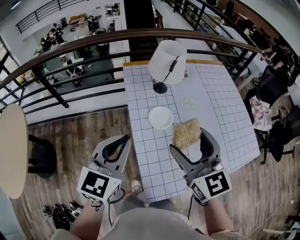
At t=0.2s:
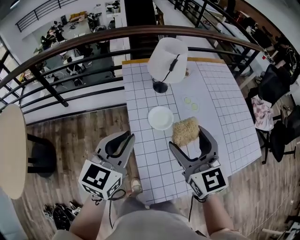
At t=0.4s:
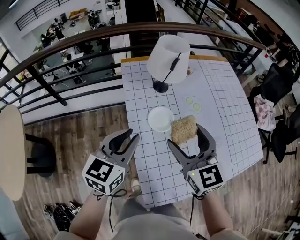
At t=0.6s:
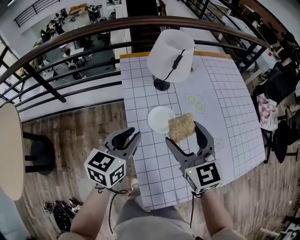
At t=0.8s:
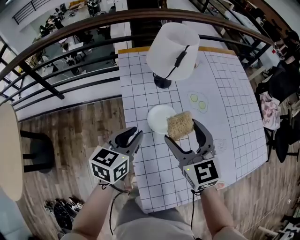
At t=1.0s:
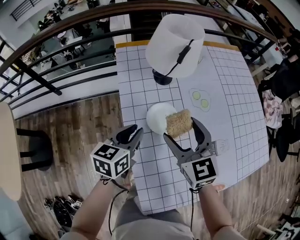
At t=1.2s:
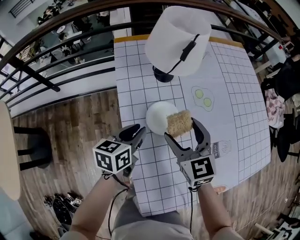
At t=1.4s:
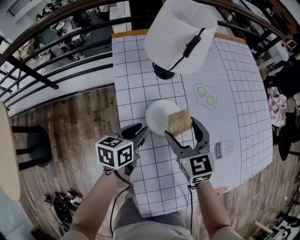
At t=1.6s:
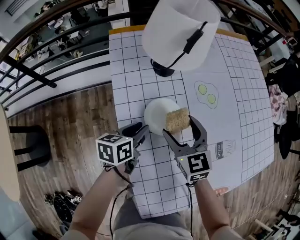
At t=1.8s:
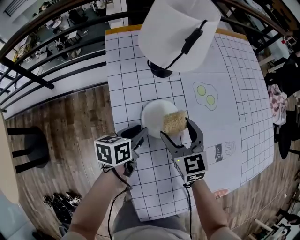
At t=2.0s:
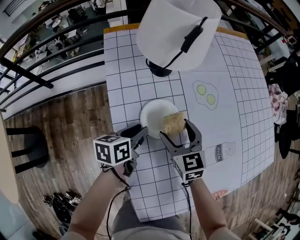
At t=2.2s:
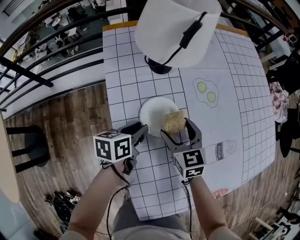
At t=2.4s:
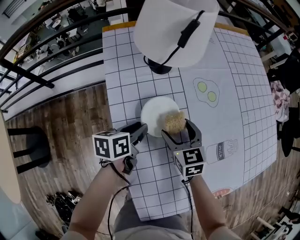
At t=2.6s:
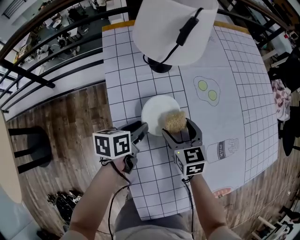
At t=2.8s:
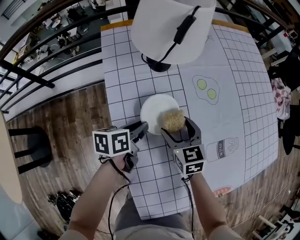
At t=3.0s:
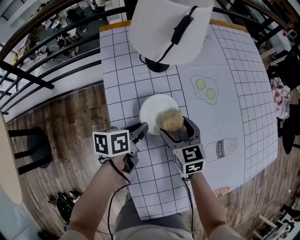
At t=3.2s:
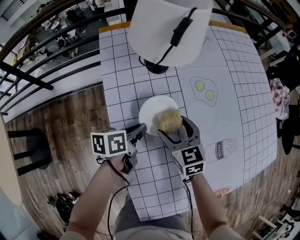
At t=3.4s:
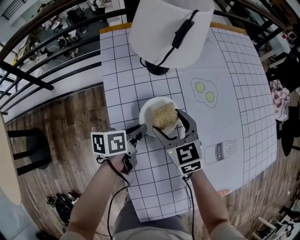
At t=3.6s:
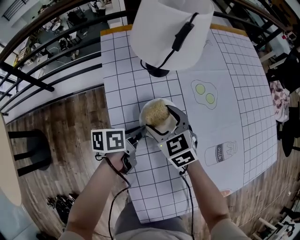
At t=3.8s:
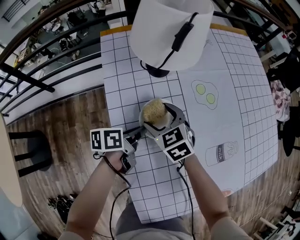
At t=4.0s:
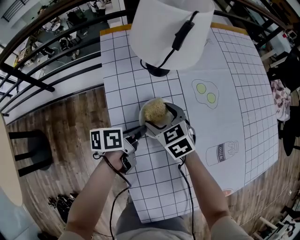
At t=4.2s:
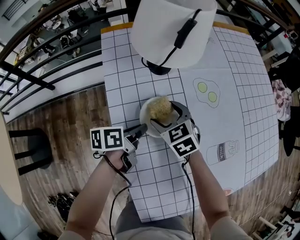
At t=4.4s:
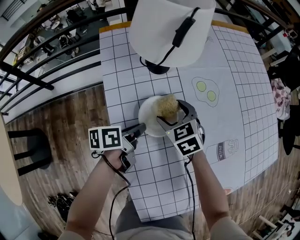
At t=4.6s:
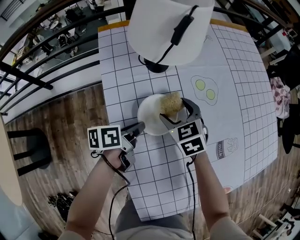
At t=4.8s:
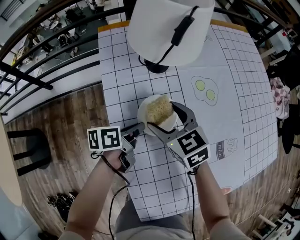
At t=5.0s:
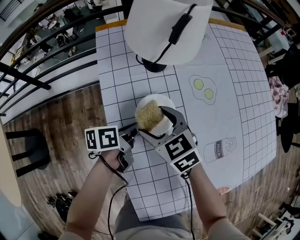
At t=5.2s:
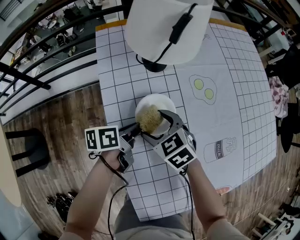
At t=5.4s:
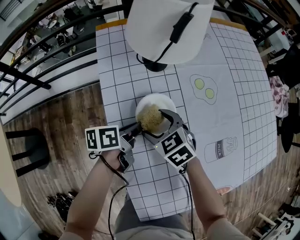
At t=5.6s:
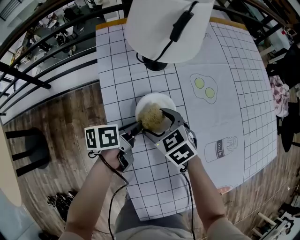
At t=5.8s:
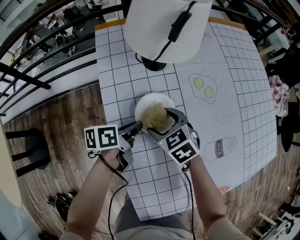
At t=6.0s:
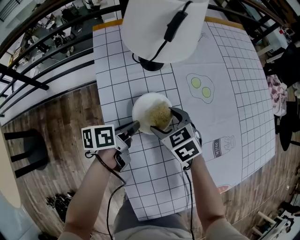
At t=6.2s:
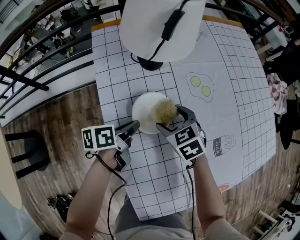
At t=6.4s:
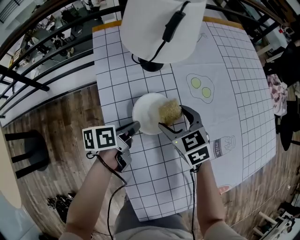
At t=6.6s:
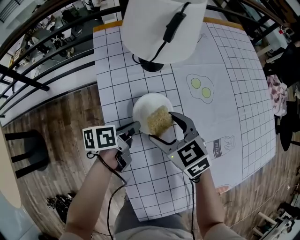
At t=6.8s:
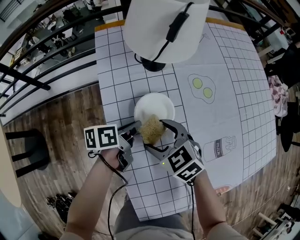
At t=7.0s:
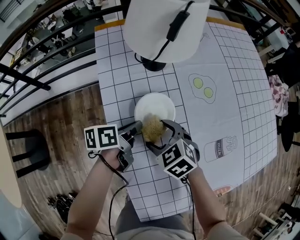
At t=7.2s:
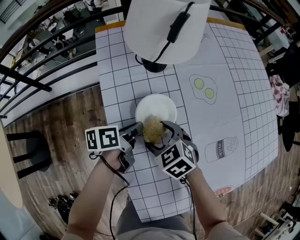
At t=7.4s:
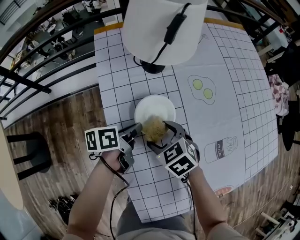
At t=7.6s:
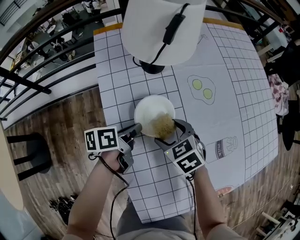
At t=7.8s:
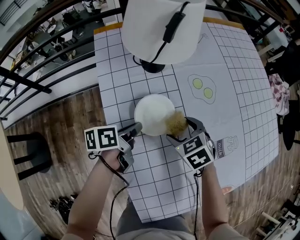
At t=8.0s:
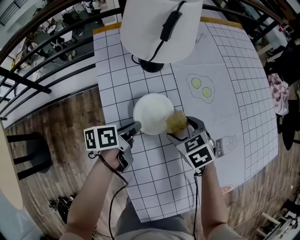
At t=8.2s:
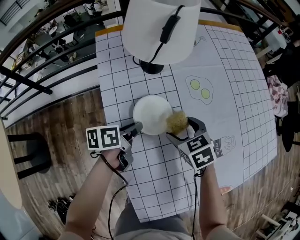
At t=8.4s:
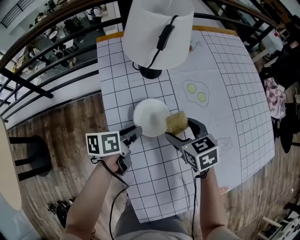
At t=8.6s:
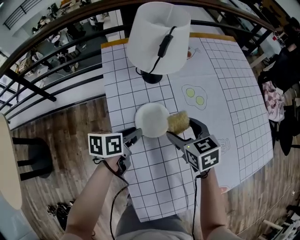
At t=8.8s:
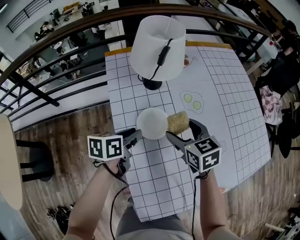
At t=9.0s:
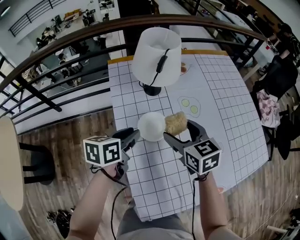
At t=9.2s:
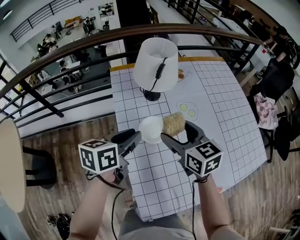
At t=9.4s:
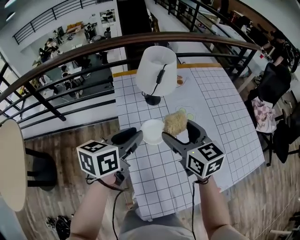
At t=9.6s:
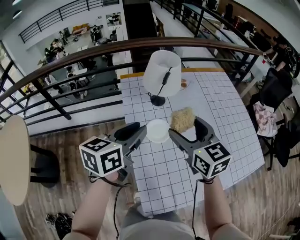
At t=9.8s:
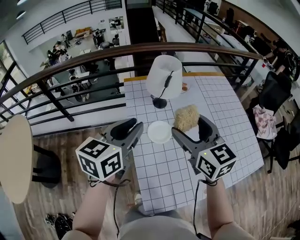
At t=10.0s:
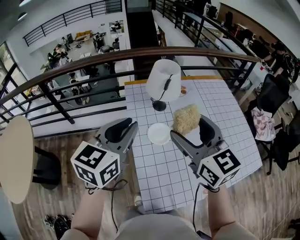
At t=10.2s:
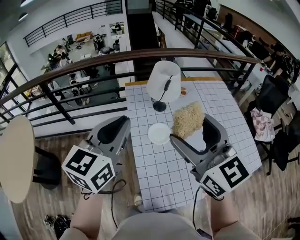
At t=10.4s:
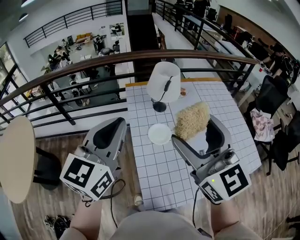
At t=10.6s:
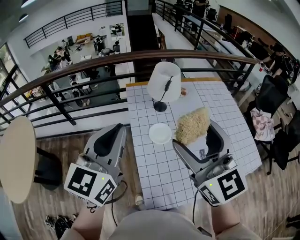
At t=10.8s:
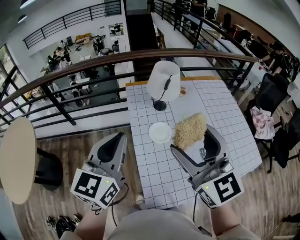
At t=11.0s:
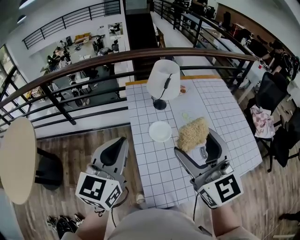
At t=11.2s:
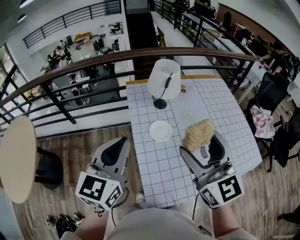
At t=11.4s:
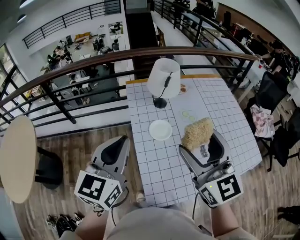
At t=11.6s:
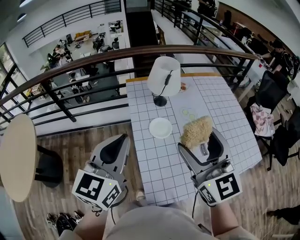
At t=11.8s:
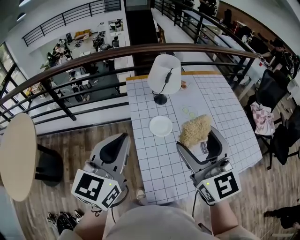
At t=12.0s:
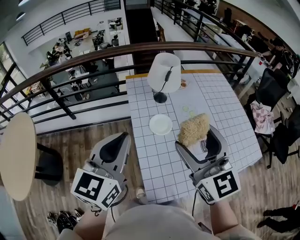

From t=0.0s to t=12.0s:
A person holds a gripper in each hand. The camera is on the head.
From t=0.0s to t=1.6s: The two grippers go some 35 cm downward and forward. The left gripper twists about 40 degrees counterclockwise, seen from behind, and opens.
From t=1.6s to t=3.0s: The right gripper is displaced downward by approximately 10 cm.
From t=3.0s to t=4.4s: The right gripper shifts some 5 cm forward.
From t=7.6s to t=9.0s: The grippers both shift upward by approximately 20 cm. The left gripper rotates some 30 degrees, and opens, while the right gripper swivels about 30 degrees.
From t=9.0s to t=10.4s: Both grippers travel together upward and backward, some 40 cm. The left gripper turns by some 50 degrees, and closes up. Meanwhile the right gripper tilts its fingers about 30 degrees upward.
From t=10.4s to t=12.0s: The left gripper shifts some 5 cm backward. Meanwhile the right gripper travels downward by roughly 5 cm.

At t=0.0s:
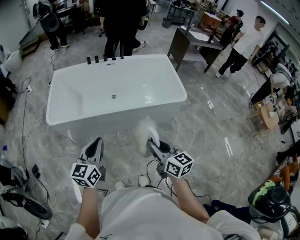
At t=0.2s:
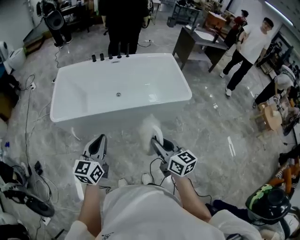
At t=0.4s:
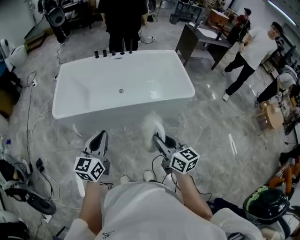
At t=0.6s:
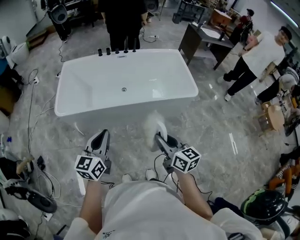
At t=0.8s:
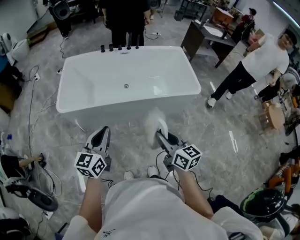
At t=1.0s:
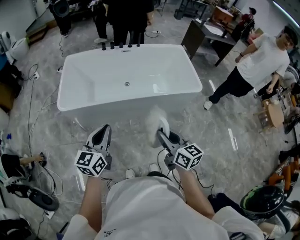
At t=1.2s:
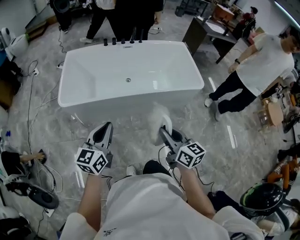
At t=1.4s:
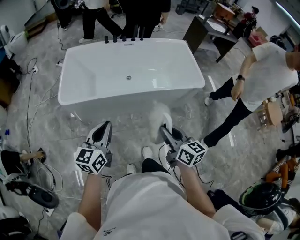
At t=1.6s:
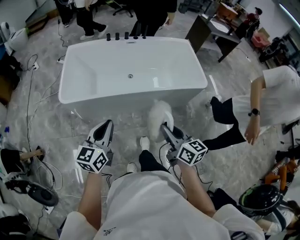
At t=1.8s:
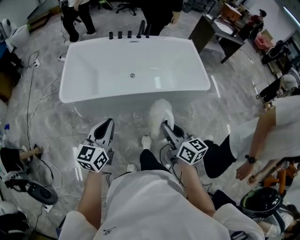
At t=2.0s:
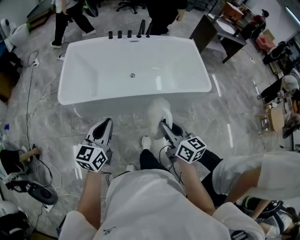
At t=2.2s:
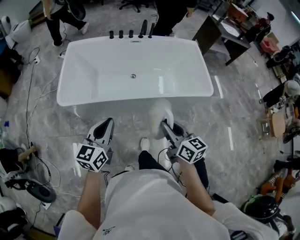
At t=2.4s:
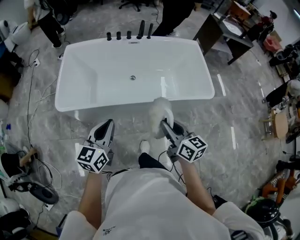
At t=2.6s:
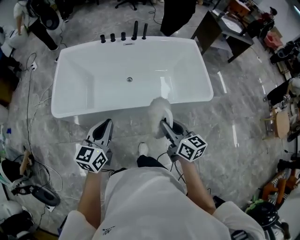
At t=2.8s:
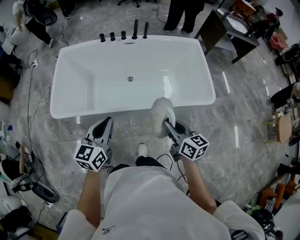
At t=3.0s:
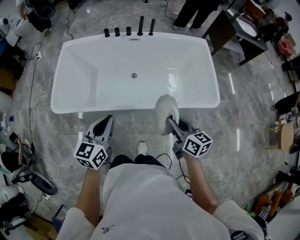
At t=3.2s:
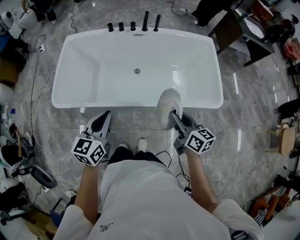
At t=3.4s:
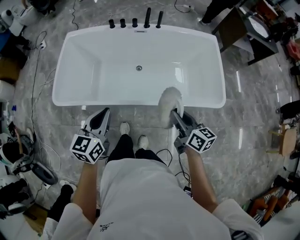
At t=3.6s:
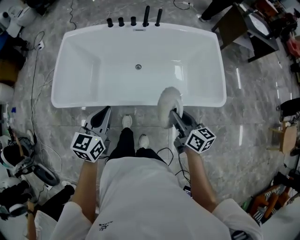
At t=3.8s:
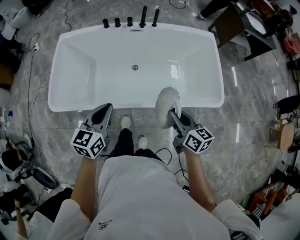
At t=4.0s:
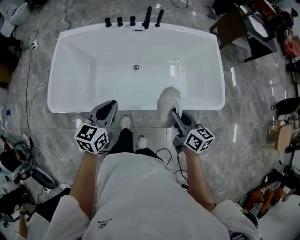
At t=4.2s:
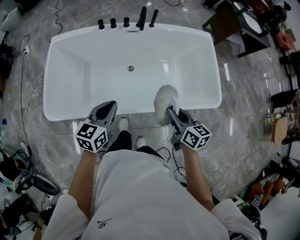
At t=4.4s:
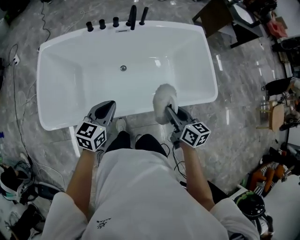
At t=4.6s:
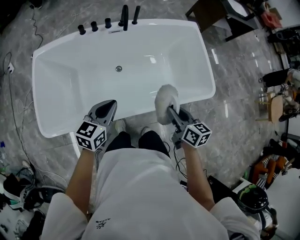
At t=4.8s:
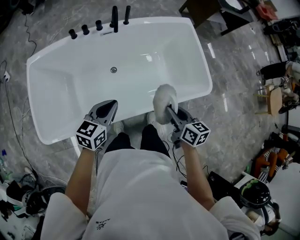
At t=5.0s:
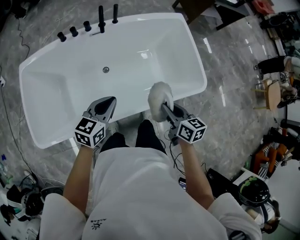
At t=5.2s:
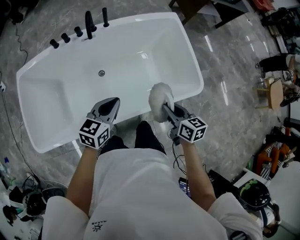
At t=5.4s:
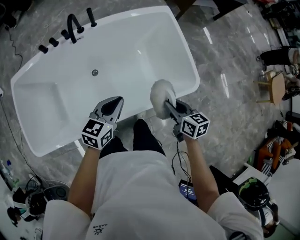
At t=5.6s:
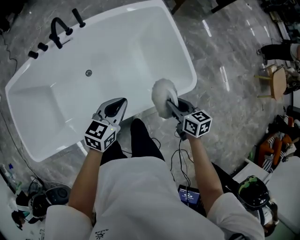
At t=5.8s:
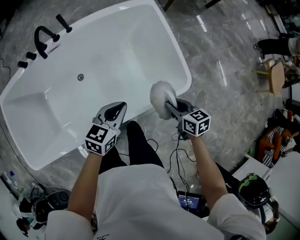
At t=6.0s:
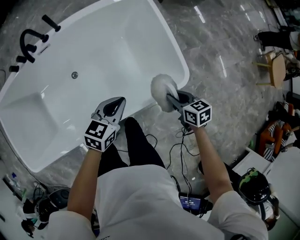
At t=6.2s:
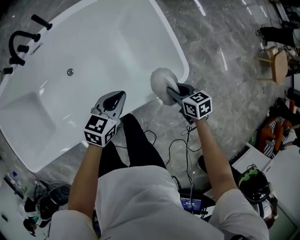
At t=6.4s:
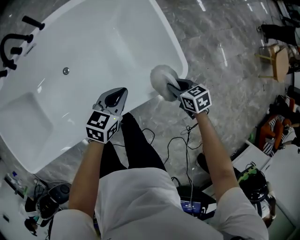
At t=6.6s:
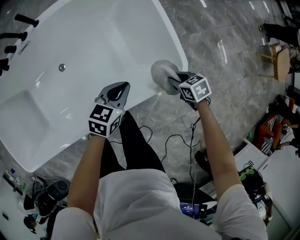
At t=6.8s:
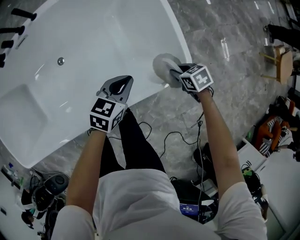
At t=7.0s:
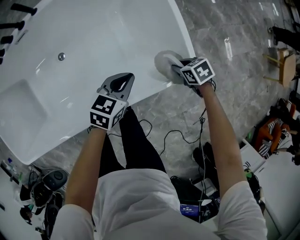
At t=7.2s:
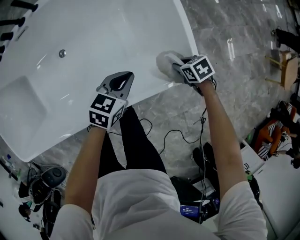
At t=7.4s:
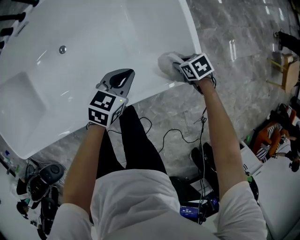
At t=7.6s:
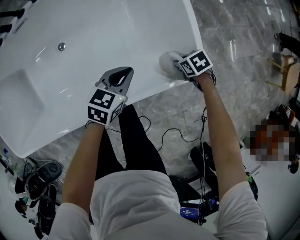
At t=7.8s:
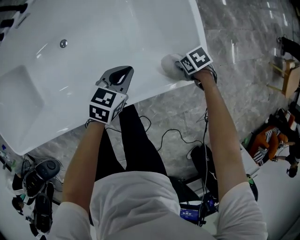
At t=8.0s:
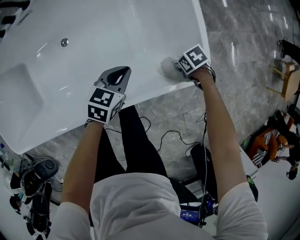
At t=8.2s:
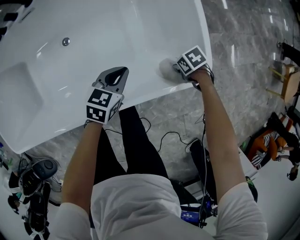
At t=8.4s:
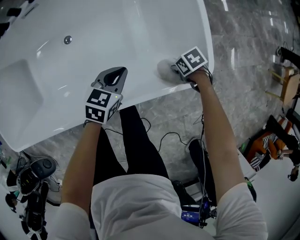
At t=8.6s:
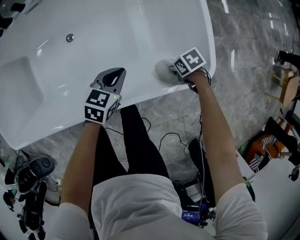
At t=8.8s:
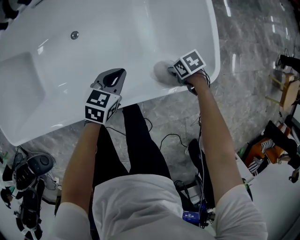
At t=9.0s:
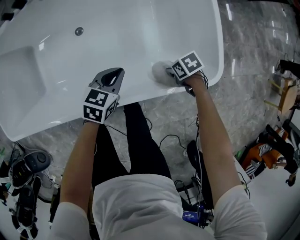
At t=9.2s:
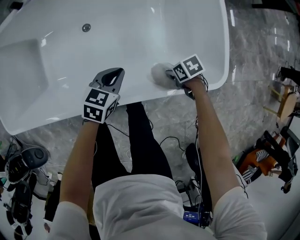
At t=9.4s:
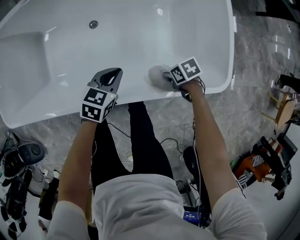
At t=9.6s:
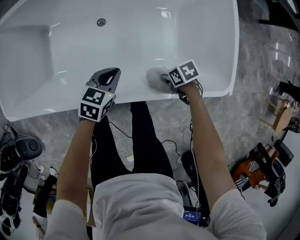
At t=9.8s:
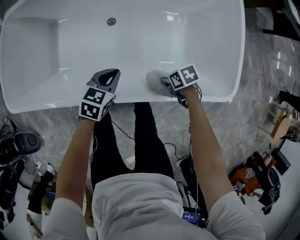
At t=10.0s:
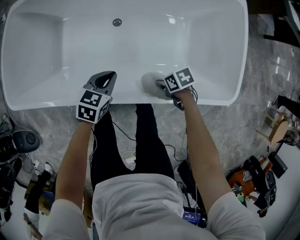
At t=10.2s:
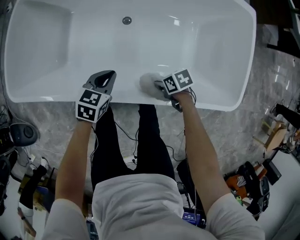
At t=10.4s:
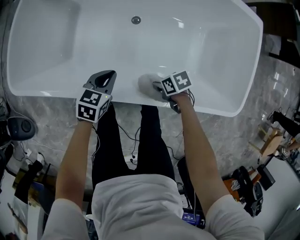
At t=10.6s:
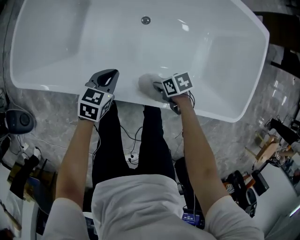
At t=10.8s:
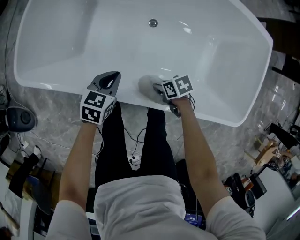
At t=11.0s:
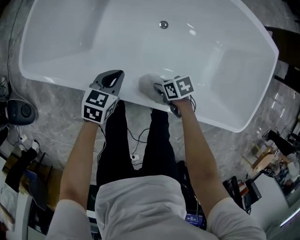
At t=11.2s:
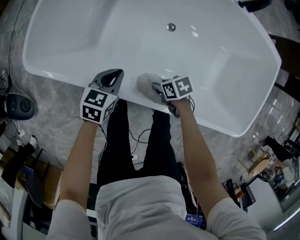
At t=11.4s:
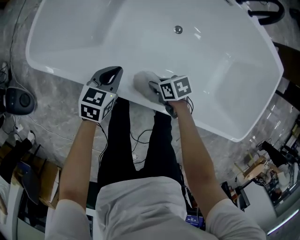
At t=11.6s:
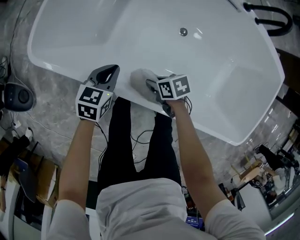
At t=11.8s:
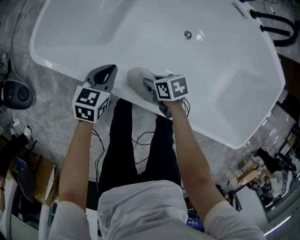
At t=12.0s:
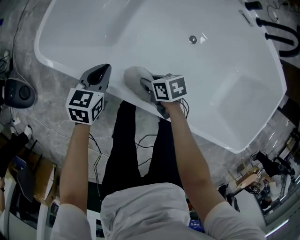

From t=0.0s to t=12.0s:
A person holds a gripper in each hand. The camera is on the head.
From t=0.0s to t=1.6s: The left gripper ends up roughly 10 cm from where it was.
From t=1.6s to t=3.0s: The left gripper changes place by some 25 cm.
From t=3.0s to t=4.4s: The left gripper changes place by roughly 20 cm.
From t=4.4s to t=6.0s: The left gripper shifts by about 40 cm, and turns by some 20 degrees.
From t=6.0s to t=7.6s: The left gripper shifts about 15 cm downward.
From t=7.6s to t=9.0s: The left gripper shifts by about 15 cm.
From t=9.0s to t=10.4s: The left gripper shifts by approximately 30 cm, and rotates about 20 degrees.
From t=10.4s to t=12.0s: The left gripper moves about 30 cm, and changes its angle by about 30 degrees.
